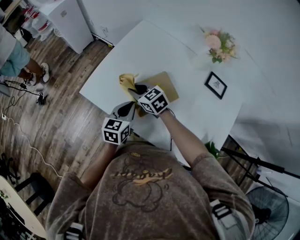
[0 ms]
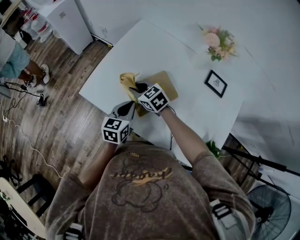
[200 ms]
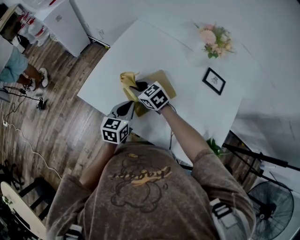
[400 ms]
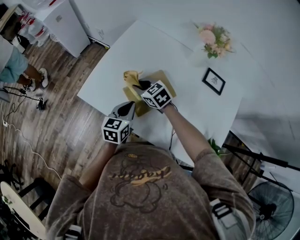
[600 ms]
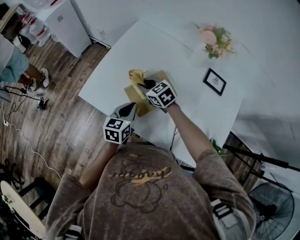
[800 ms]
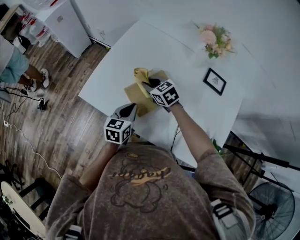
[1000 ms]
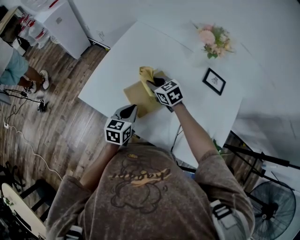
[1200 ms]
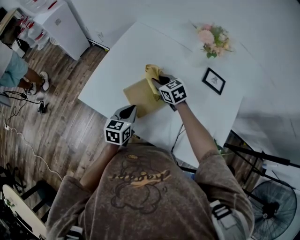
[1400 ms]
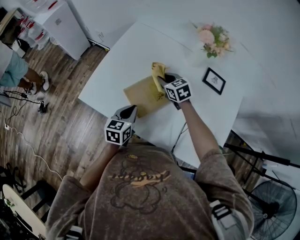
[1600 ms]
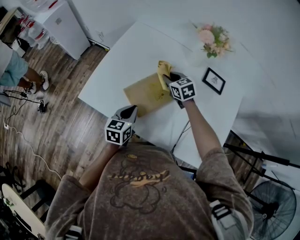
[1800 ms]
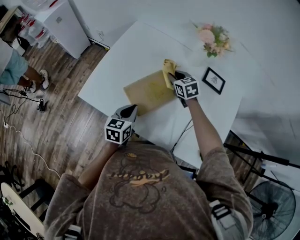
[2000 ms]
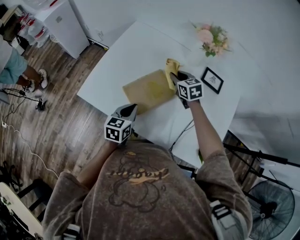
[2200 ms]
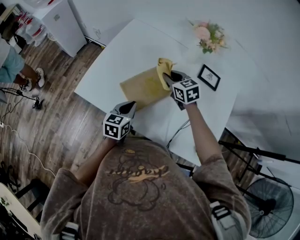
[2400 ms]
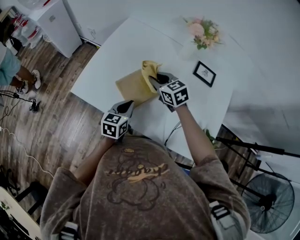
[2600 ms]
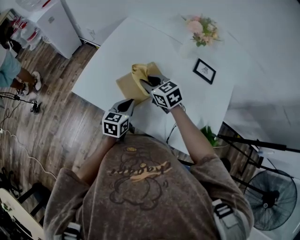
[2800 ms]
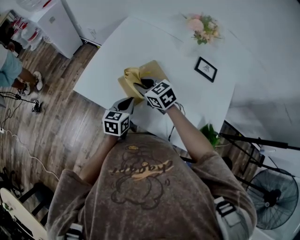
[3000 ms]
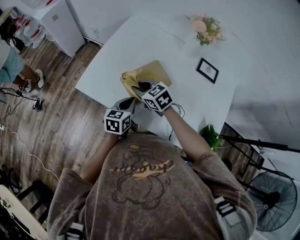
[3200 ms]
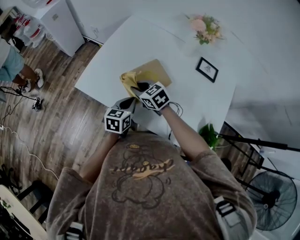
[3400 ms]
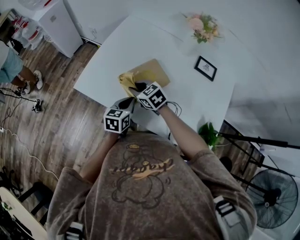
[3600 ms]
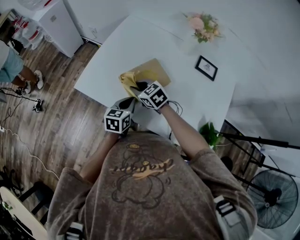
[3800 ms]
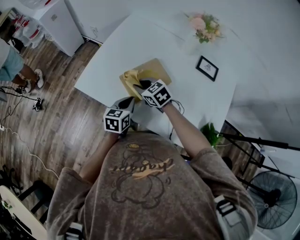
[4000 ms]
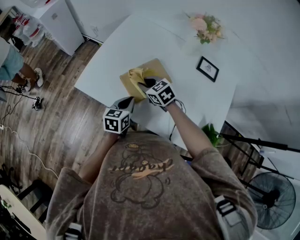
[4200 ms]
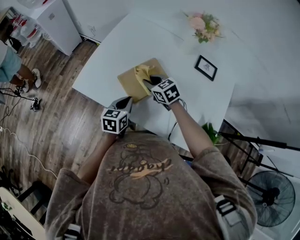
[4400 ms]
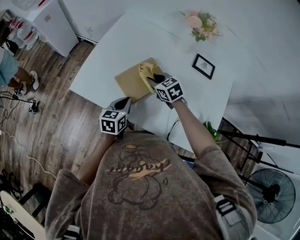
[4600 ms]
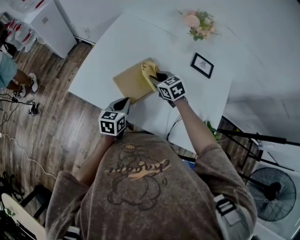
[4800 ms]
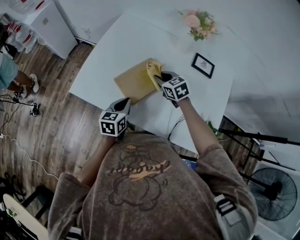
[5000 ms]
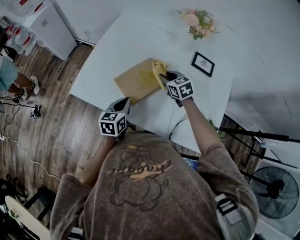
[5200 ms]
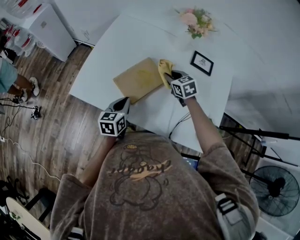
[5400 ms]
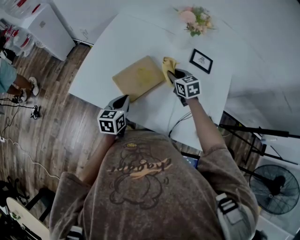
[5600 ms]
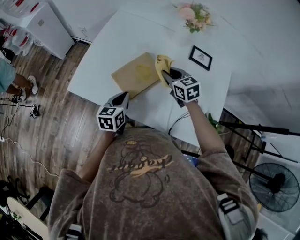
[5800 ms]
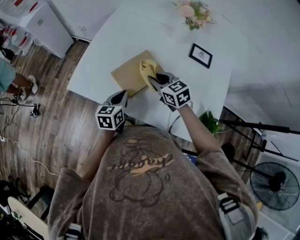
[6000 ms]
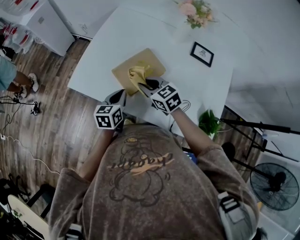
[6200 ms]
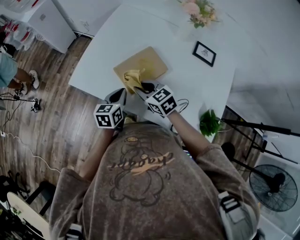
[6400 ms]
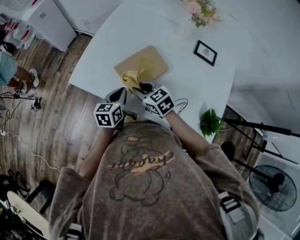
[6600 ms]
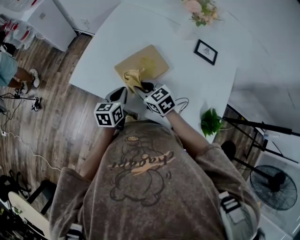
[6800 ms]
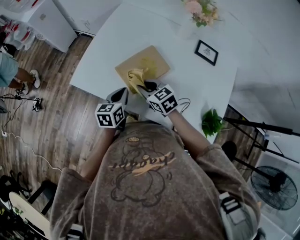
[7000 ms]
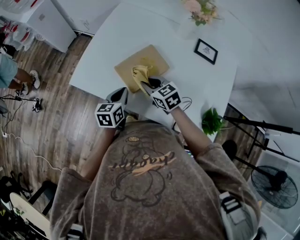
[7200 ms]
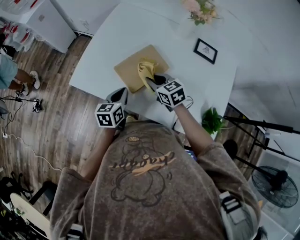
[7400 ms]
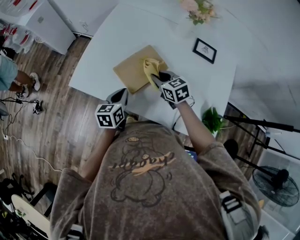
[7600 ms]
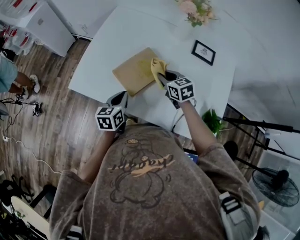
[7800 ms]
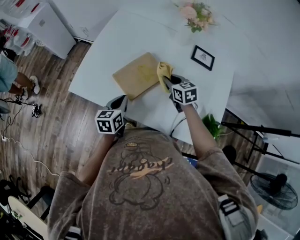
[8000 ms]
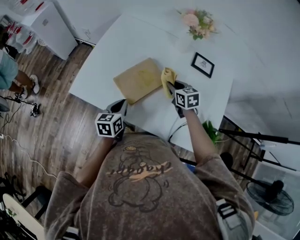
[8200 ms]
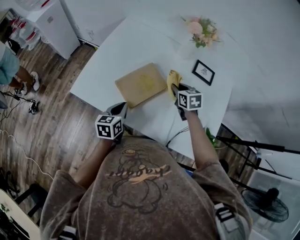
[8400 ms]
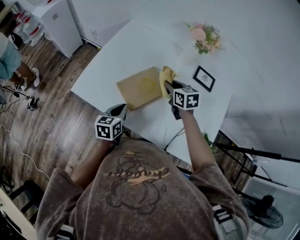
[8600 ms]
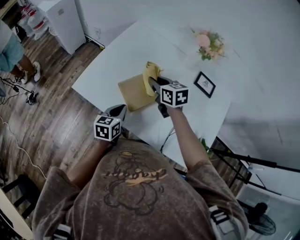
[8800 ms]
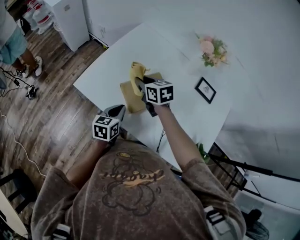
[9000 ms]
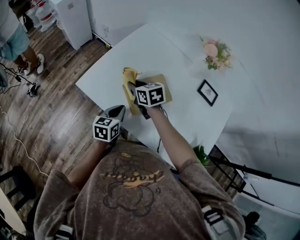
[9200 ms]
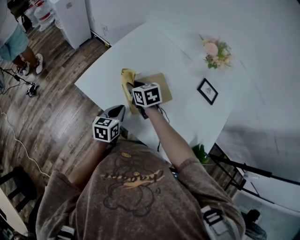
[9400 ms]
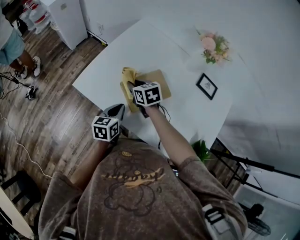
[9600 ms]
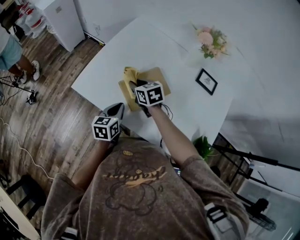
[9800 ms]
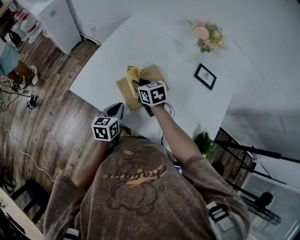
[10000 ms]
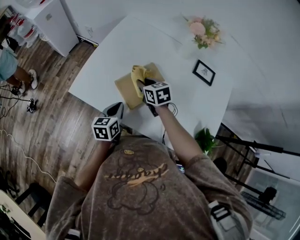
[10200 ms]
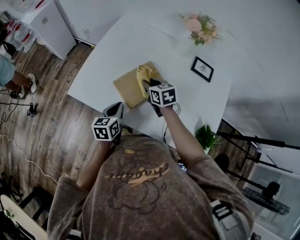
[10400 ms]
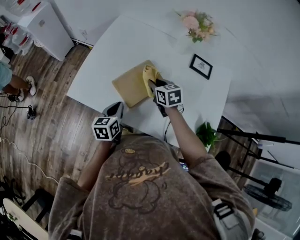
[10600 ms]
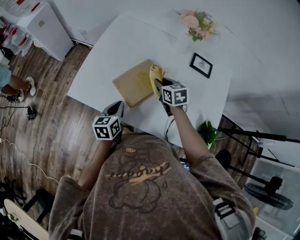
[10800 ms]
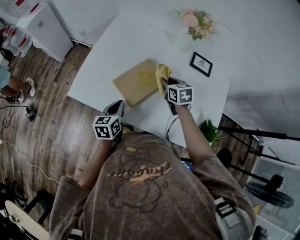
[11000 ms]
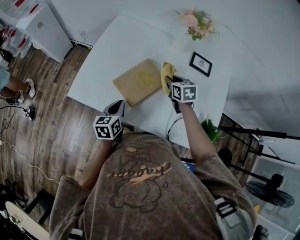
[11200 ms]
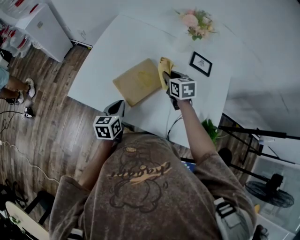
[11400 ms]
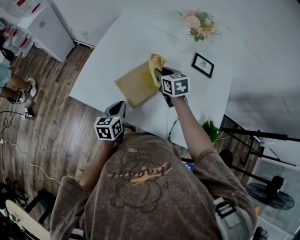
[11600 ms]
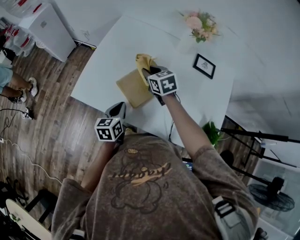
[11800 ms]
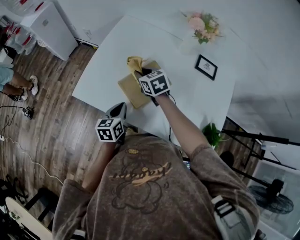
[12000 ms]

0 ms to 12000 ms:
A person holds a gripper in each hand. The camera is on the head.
0 ms to 1600 ms: The right gripper goes approximately 15 cm to the right.
1600 ms to 3000 ms: The right gripper is displaced backward, to the left and upward by approximately 15 cm.
3000 ms to 4400 ms: The right gripper is displaced downward by about 5 cm.
4400 ms to 6000 ms: The right gripper goes to the right and returns, some 15 cm each way.
6000 ms to 7600 ms: The right gripper moves downward, about 5 cm, and moves some 10 cm to the left and comes back.
7600 ms to 9000 ms: The right gripper is displaced to the left, forward and upward by about 15 cm.
9000 ms to 10400 ms: The right gripper moves to the right and downward, some 10 cm.
10400 ms to 12000 ms: The right gripper travels to the right and back again, about 10 cm each way.

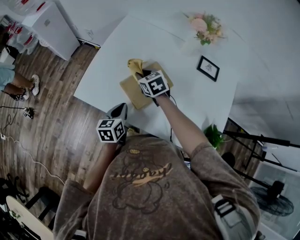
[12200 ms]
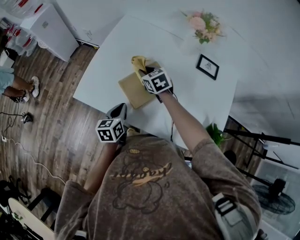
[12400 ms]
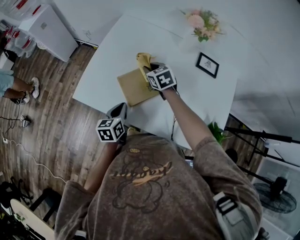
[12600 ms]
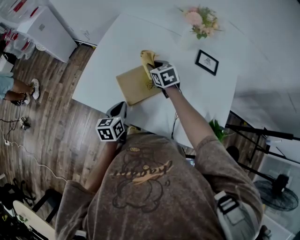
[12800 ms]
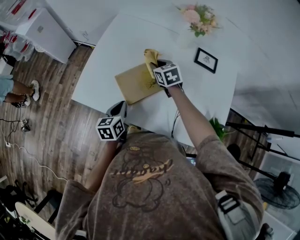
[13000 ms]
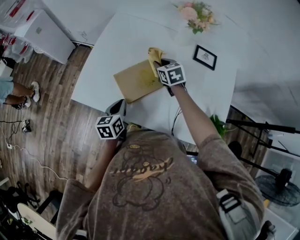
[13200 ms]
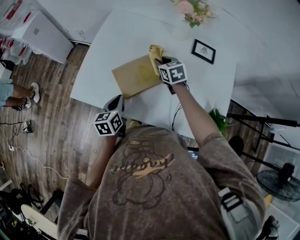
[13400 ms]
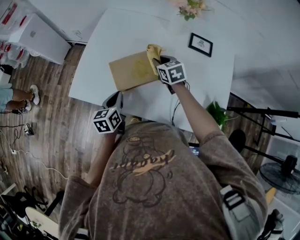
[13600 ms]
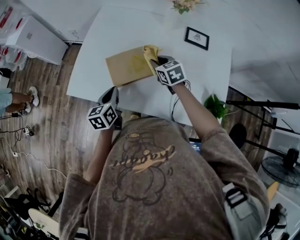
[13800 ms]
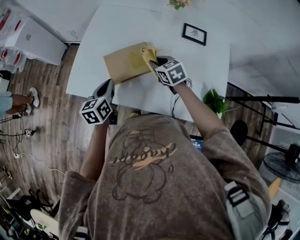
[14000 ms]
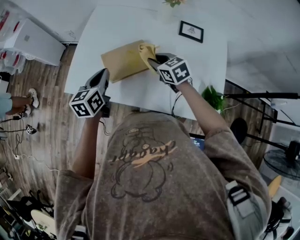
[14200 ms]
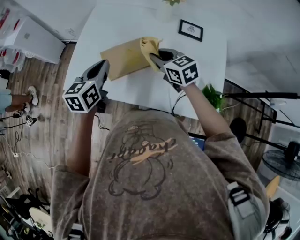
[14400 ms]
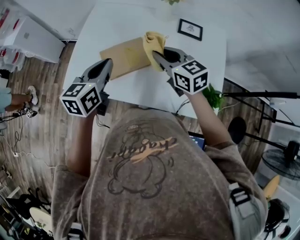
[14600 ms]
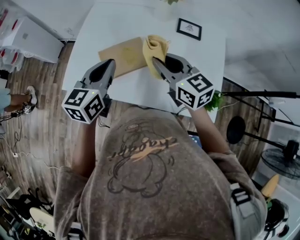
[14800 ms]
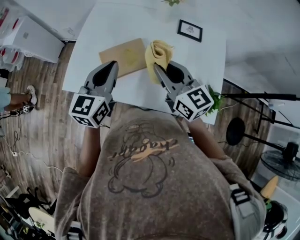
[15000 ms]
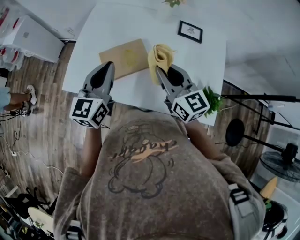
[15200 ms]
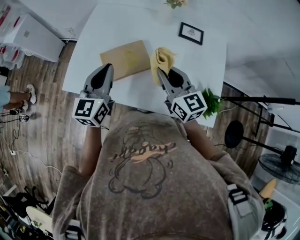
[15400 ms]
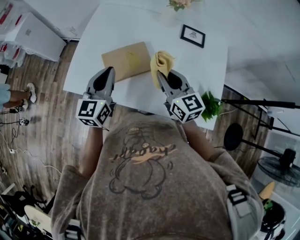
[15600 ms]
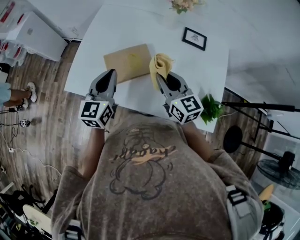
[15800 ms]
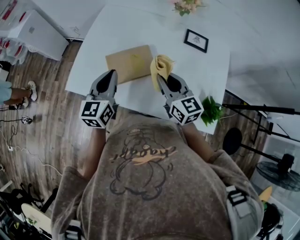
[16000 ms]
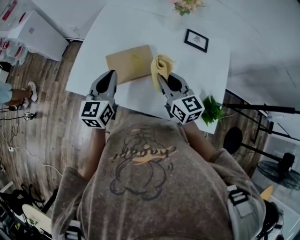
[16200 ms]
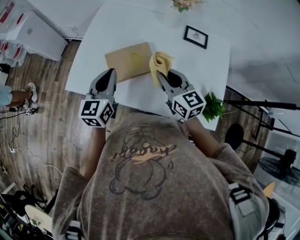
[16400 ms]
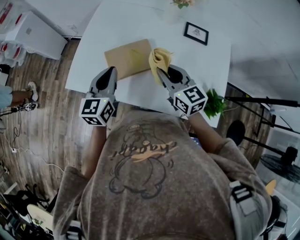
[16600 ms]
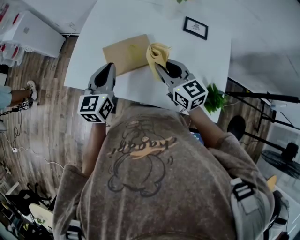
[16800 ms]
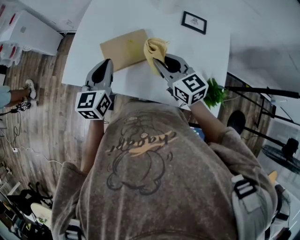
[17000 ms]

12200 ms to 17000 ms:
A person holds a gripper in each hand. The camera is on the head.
12200 ms to 13800 ms: The right gripper moves to the right, some 15 cm.
13800 ms to 15400 ms: The right gripper goes some 20 cm upward and backward, and tilts its fingers some 30 degrees upward. The left gripper is displaced upward by roughly 15 cm, and swivels some 30 degrees.
15400 ms to 17000 ms: There are only small adjustments of the grippers.

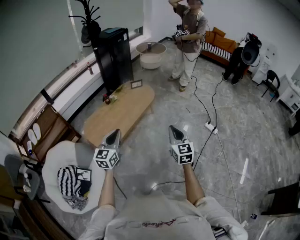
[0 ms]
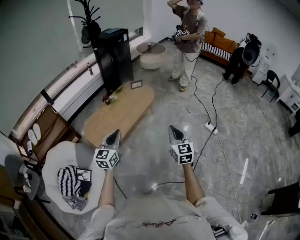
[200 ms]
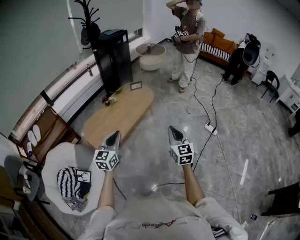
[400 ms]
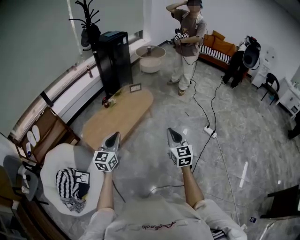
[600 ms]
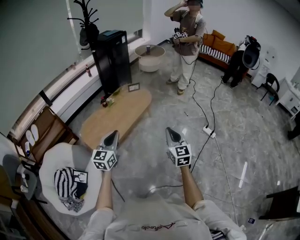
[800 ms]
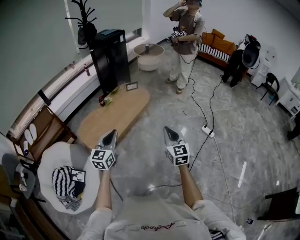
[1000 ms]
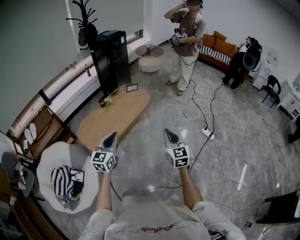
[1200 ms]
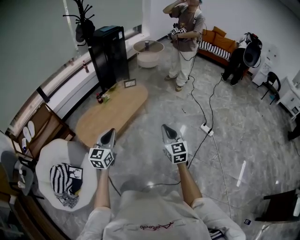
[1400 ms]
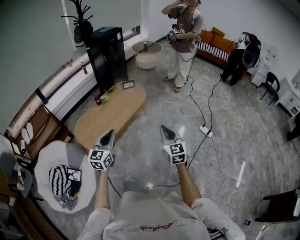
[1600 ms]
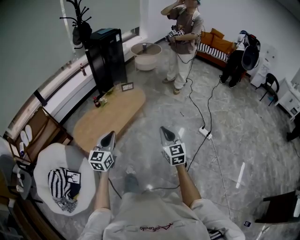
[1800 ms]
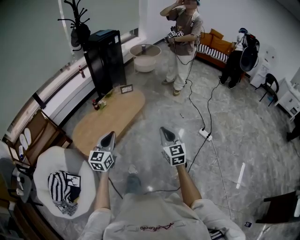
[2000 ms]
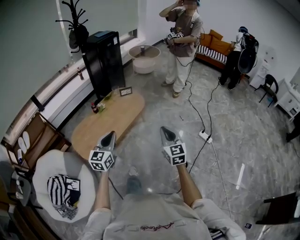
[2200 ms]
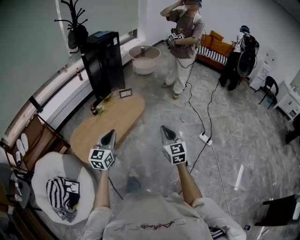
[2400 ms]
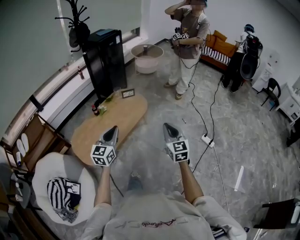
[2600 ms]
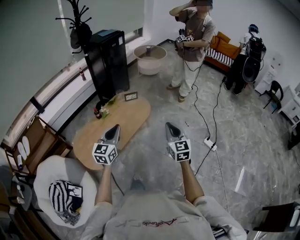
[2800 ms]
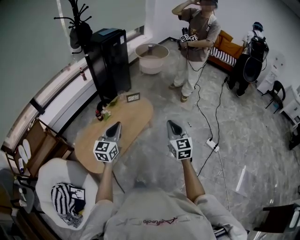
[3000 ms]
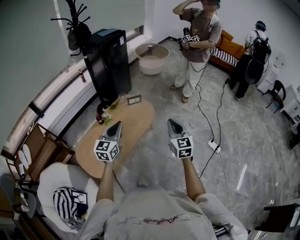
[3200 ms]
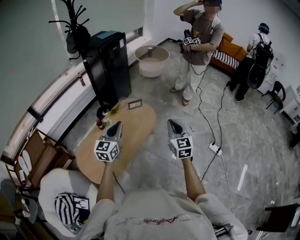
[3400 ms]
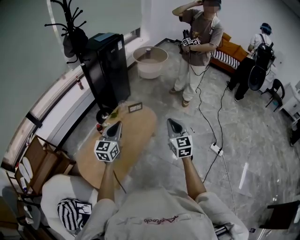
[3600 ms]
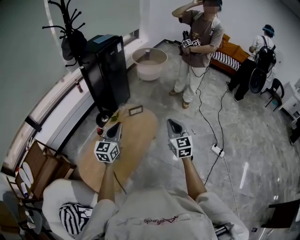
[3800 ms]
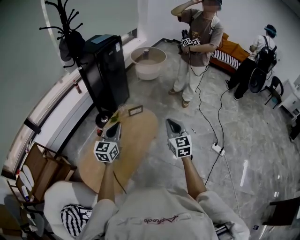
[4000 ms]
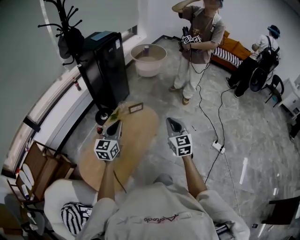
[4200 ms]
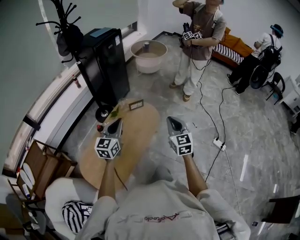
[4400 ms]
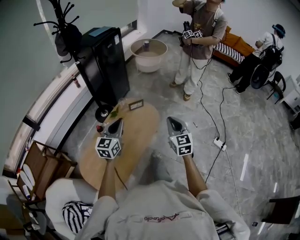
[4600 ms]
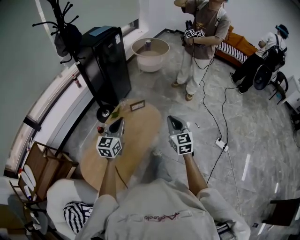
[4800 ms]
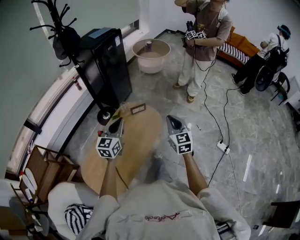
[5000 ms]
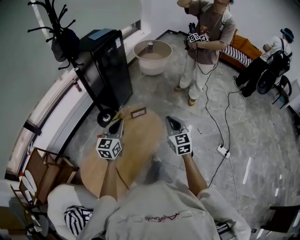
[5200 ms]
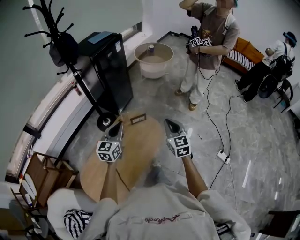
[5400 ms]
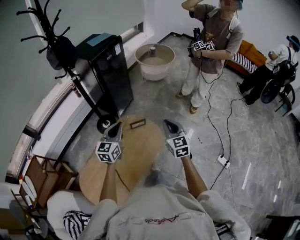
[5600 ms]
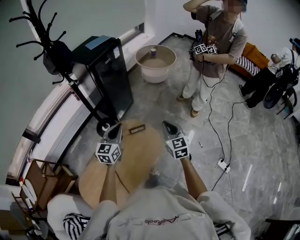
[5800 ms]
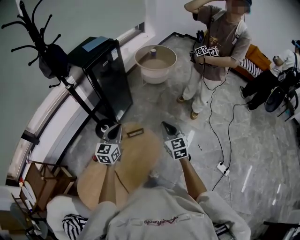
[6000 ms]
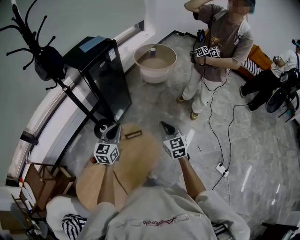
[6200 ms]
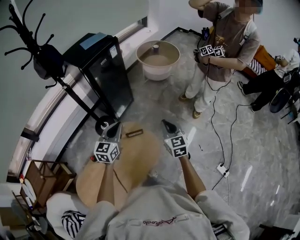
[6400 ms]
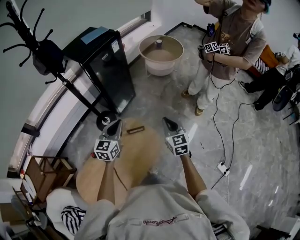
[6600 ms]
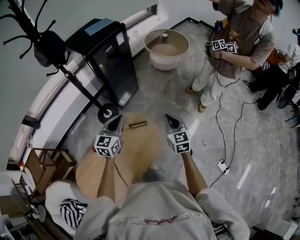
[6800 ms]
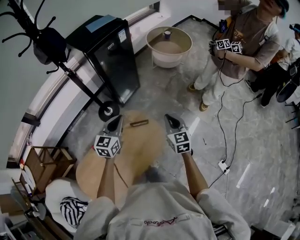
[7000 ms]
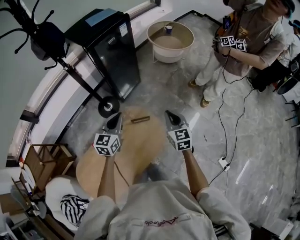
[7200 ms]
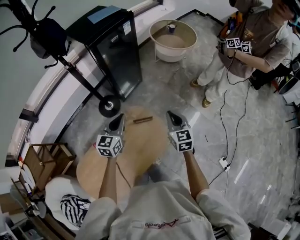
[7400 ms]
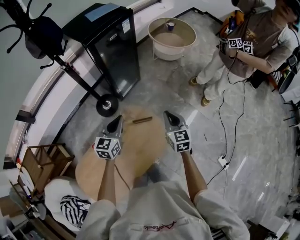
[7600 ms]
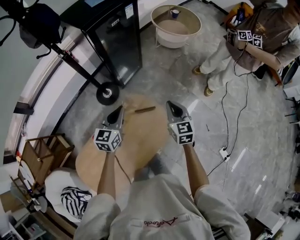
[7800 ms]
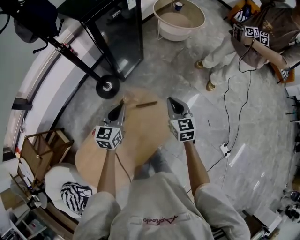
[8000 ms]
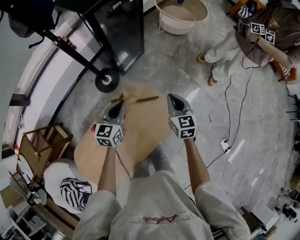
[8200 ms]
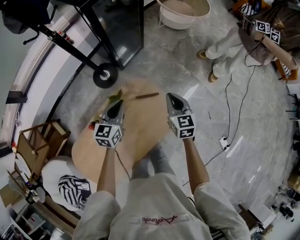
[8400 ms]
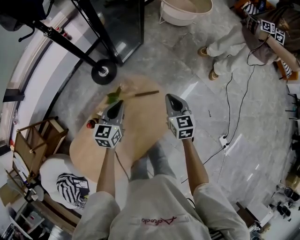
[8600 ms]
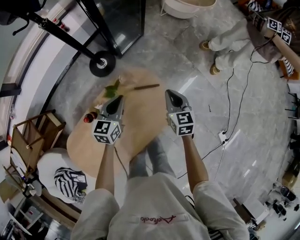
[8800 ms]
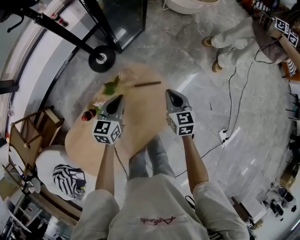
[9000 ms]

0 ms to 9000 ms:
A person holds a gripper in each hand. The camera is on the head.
0 ms to 1600 ms: The grippers both shift to the right by approximately 10 cm.
1600 ms to 3000 ms: Both grippers move forward, about 30 cm.
3000 ms to 4400 ms: The grippers both shift forward and to the left by some 20 cm.
4400 ms to 6000 ms: Both grippers travel together forward, about 35 cm.
6000 ms to 7600 ms: The grippers both shift forward, downward and to the left by about 20 cm.
7600 ms to 9000 ms: The grippers both shift downward by about 20 cm.
